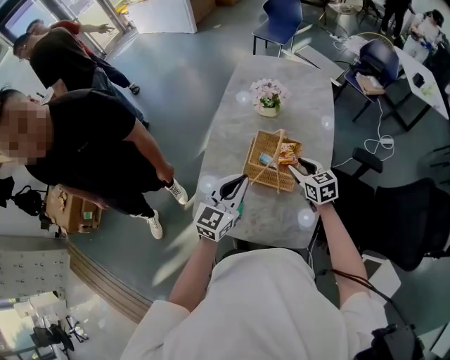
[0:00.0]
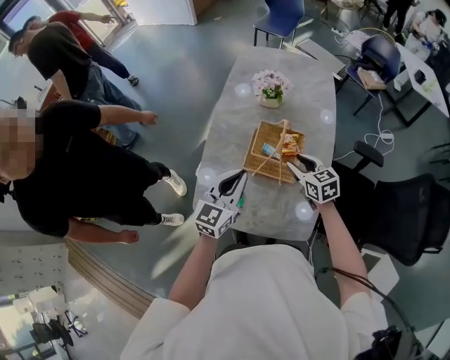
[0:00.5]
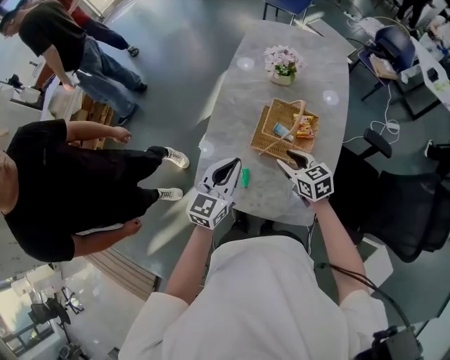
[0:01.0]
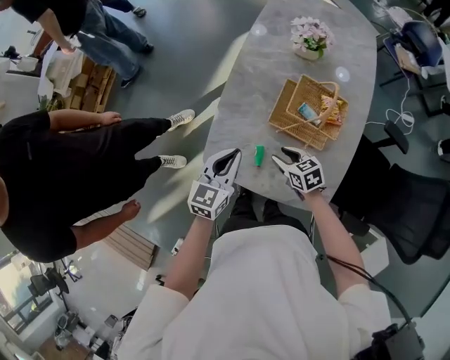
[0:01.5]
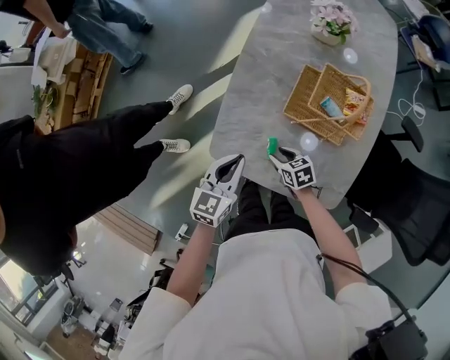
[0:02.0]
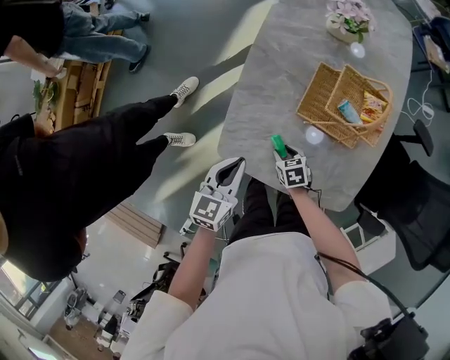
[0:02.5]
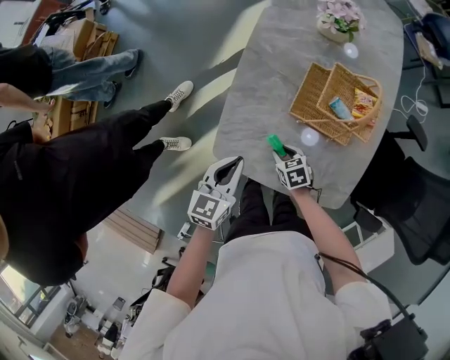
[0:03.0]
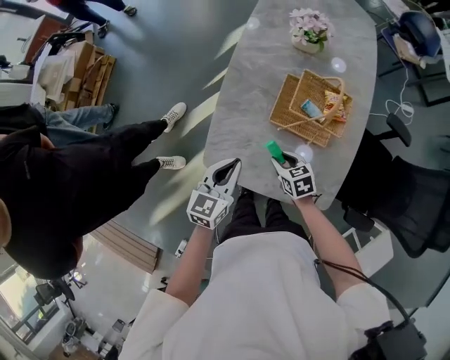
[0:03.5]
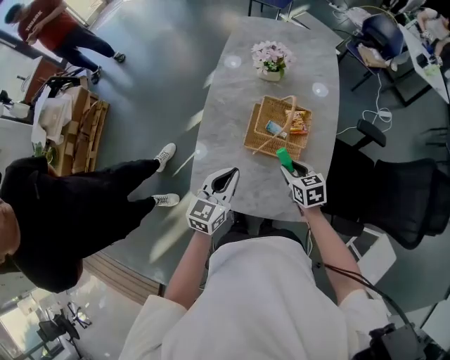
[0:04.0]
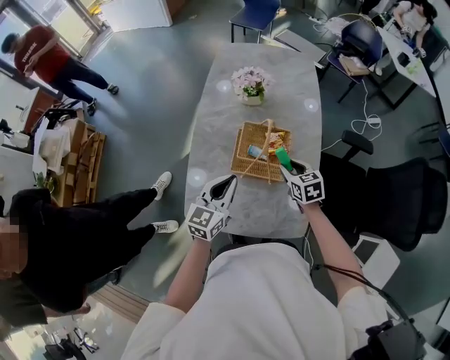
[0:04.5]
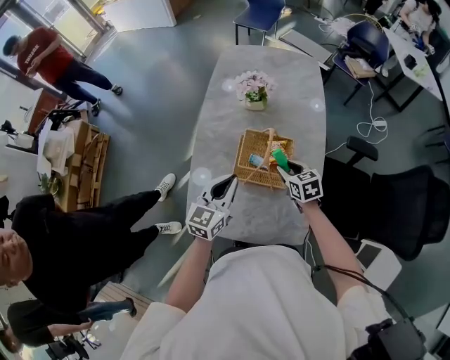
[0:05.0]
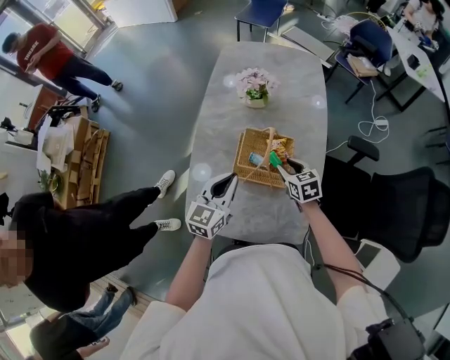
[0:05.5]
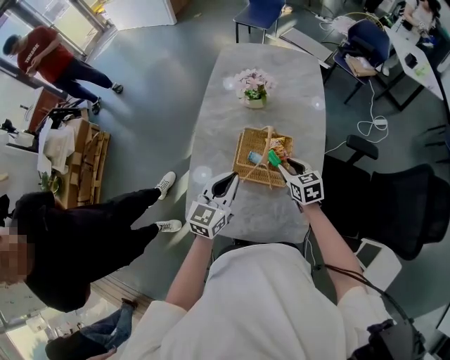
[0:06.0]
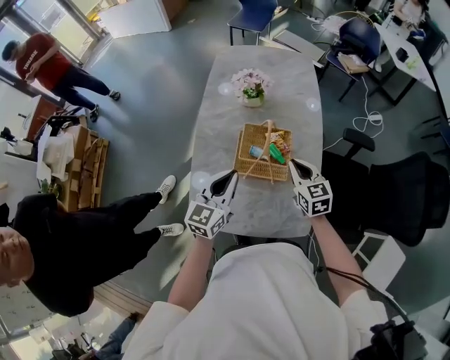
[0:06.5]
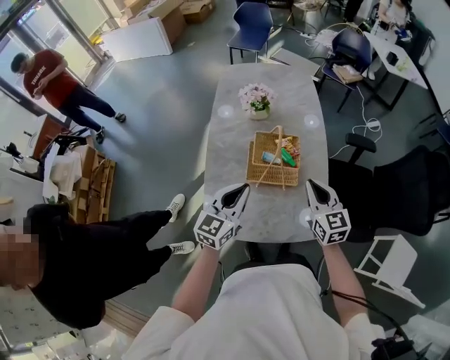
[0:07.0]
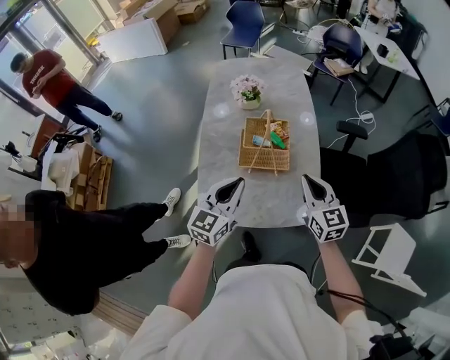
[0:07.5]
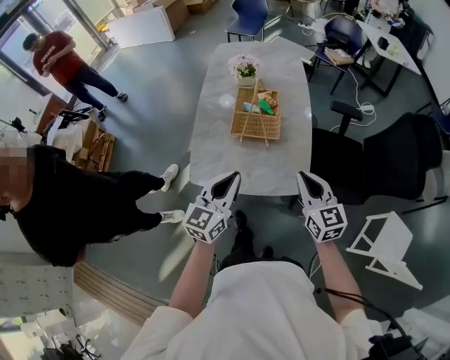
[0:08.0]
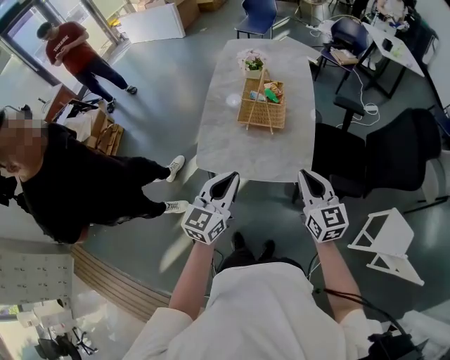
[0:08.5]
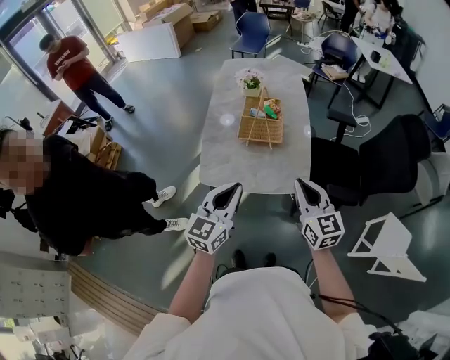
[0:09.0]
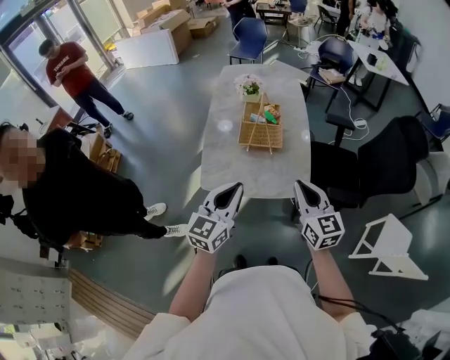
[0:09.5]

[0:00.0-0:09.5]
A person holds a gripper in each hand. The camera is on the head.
0:00.0 to 0:02.0: The right gripper is displaced downward, to the left and backward by roughly 35 cm, and changes its angle by approximately 30 degrees, while the left gripper heads downward and to the left, covering roughly 25 cm, and swivels about 20 degrees.
0:02.0 to 0:04.0: The left gripper shifts about 15 cm upward and to the right, while the right gripper is displaced upward and to the right by roughly 25 cm, and changes its angle by about 20 degrees.
0:04.0 to 0:05.5: Both grippers move forward and to the right, approximately 10 cm.
0:05.5 to 0:07.5: The right gripper goes about 30 cm backward and upward, swivels about 30 degrees, and closes up; the left gripper is displaced backward and upward by some 15 cm.
0:07.5 to 0:09.5: The two grippers go roughly 25 cm backward.

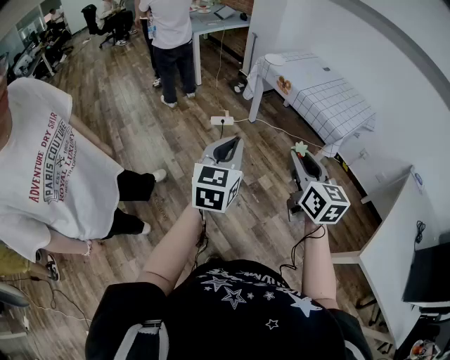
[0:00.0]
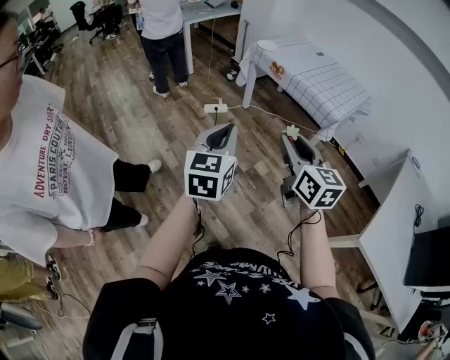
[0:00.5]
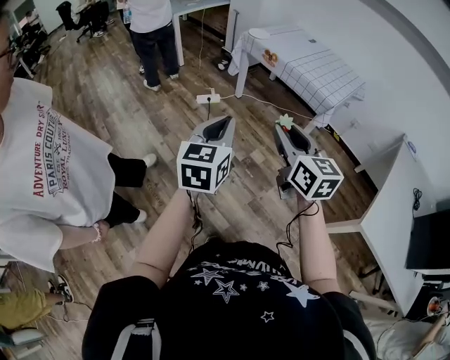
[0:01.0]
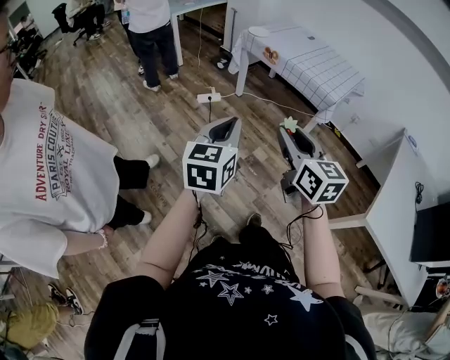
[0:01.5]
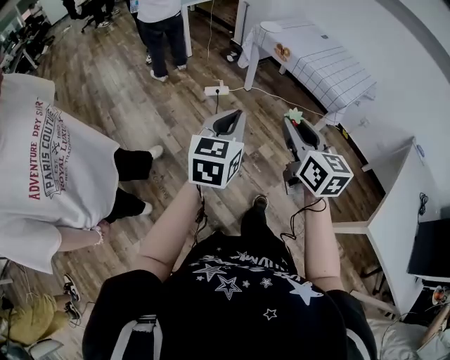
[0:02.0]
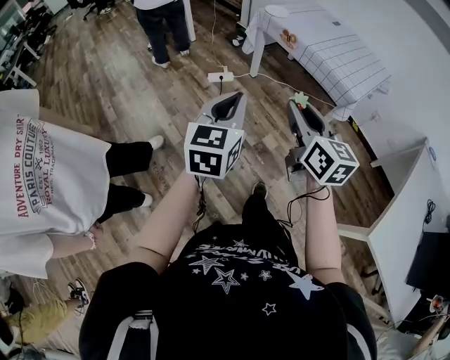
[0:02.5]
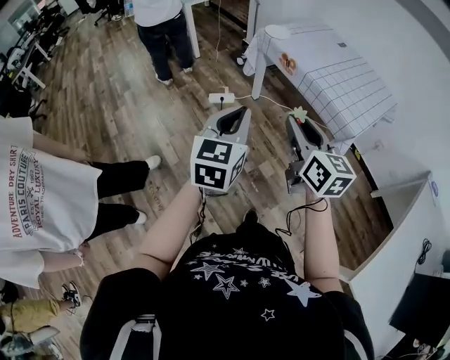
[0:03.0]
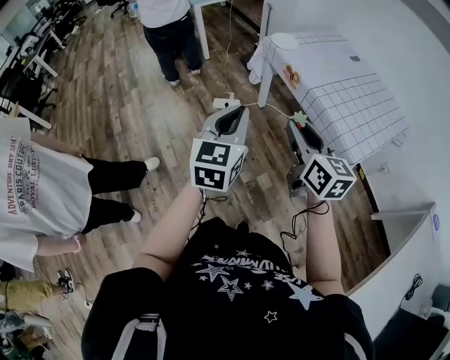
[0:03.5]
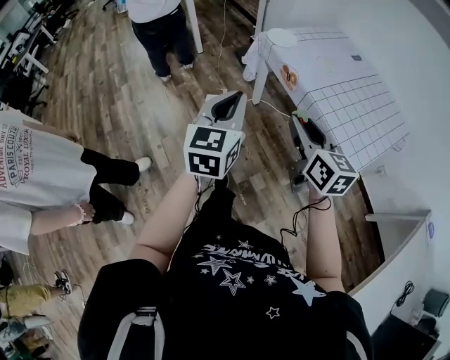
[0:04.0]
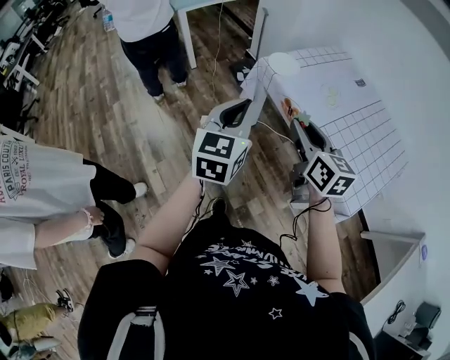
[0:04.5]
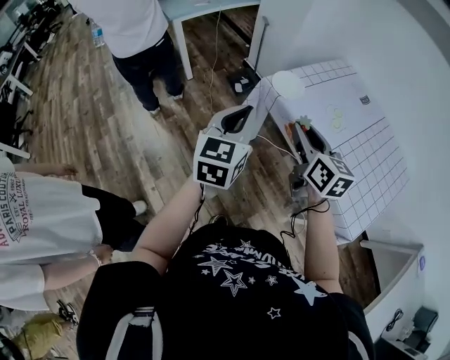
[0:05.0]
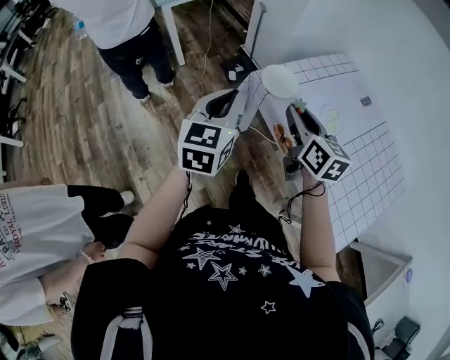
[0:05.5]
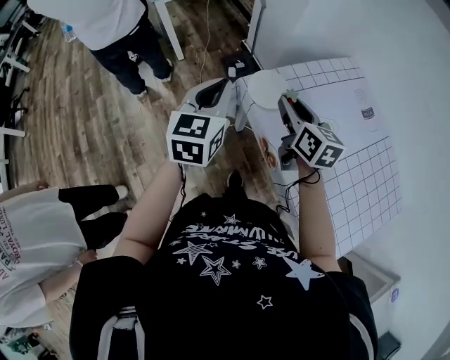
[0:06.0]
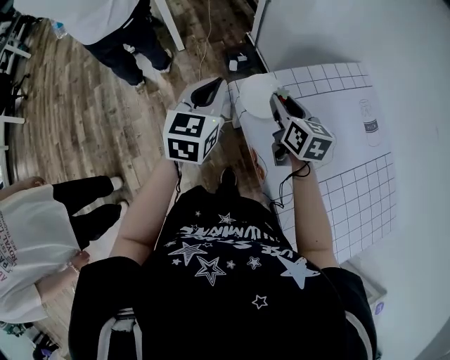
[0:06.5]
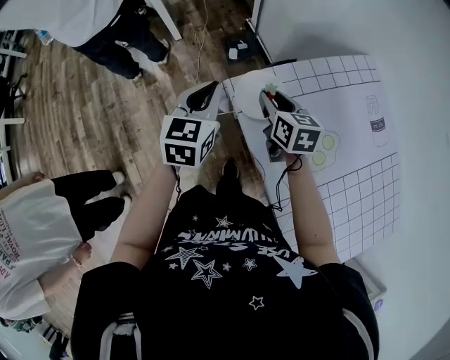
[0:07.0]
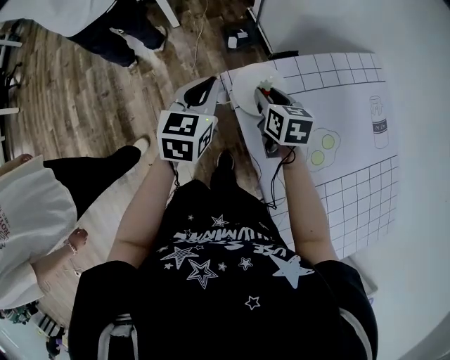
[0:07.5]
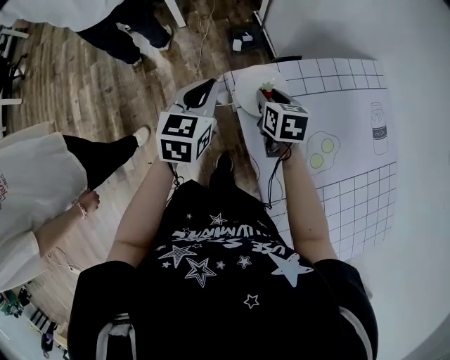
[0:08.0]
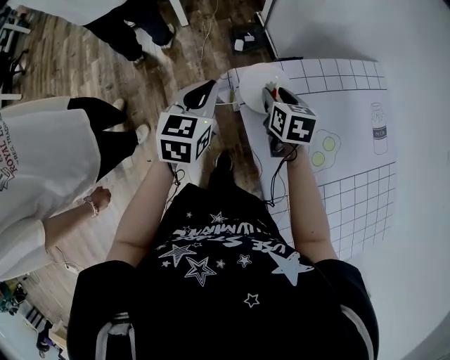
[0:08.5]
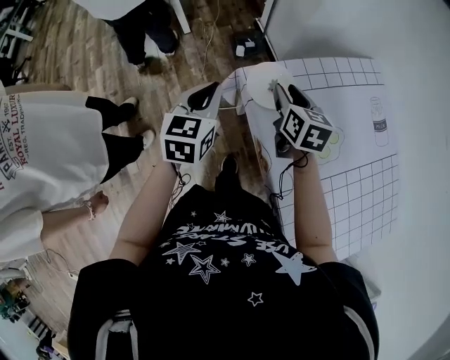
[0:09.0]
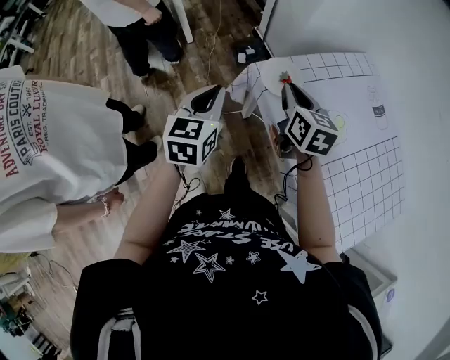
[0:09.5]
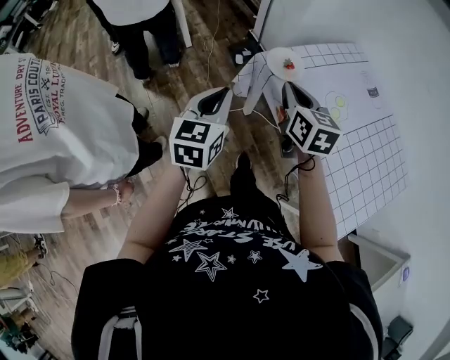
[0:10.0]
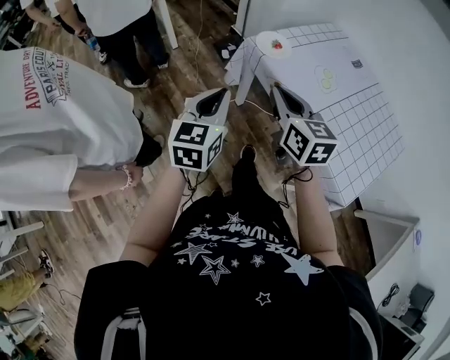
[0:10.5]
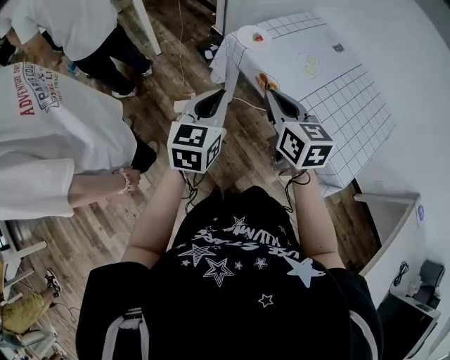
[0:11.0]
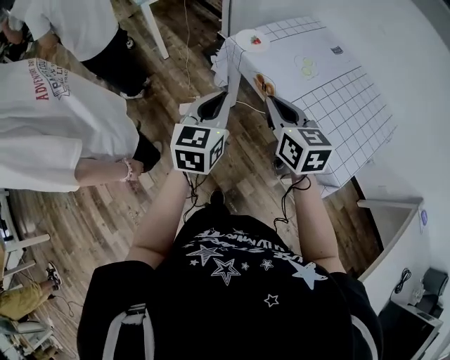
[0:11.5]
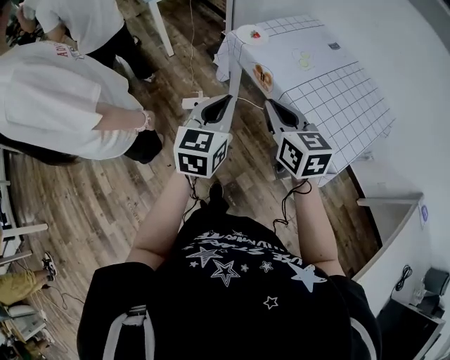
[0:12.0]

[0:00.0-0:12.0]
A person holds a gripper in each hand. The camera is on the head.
0:00.0 to 0:02.0: The right gripper goes about 5 cm to the left.
0:02.0 to 0:04.0: Both grippers are carried forward and to the right, some 40 cm.
0:04.0 to 0:06.0: Both grippers are carried forward, some 40 cm.
0:06.0 to 0:08.0: Both grippers move downward and forward, approximately 15 cm. The right gripper changes its angle by about 30 degrees.
0:08.0 to 0:10.0: The right gripper shifts roughly 25 cm backward and upward, turns by some 30 degrees, and closes its fingers, while the left gripper goes about 25 cm backward and to the left.
0:10.0 to 0:12.0: Both grippers travel together backward, some 25 cm.

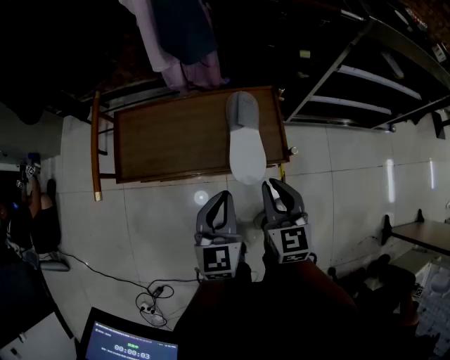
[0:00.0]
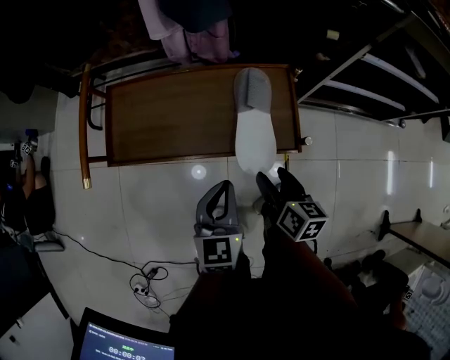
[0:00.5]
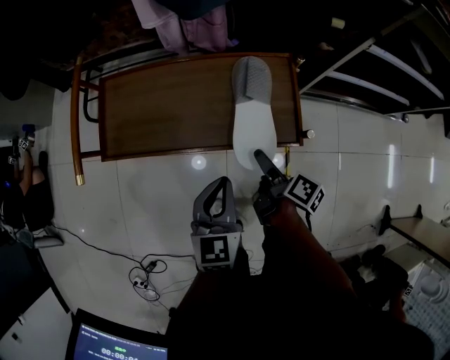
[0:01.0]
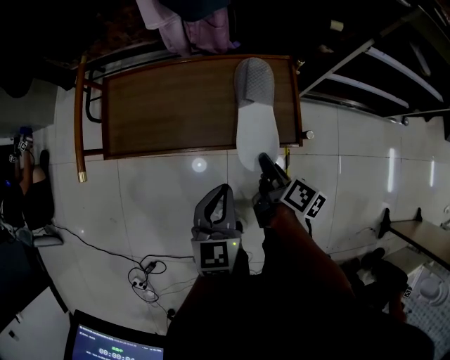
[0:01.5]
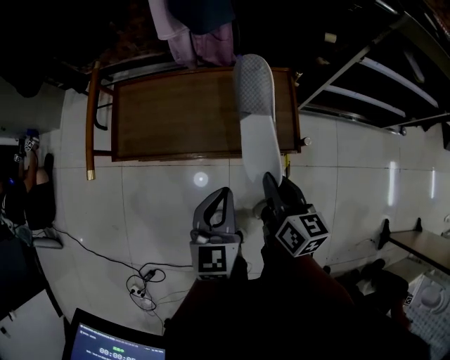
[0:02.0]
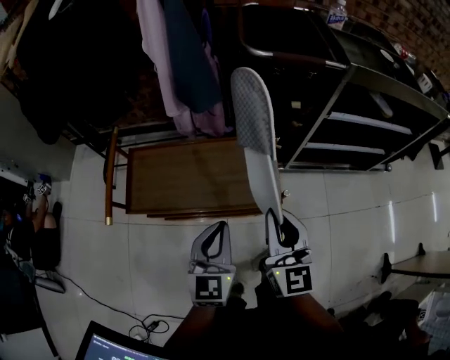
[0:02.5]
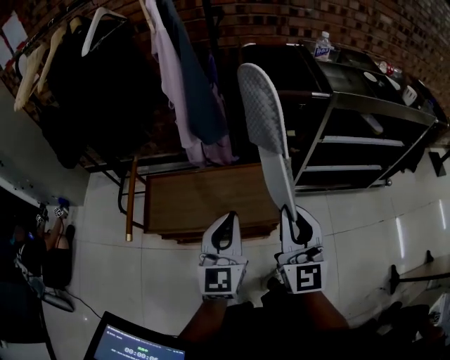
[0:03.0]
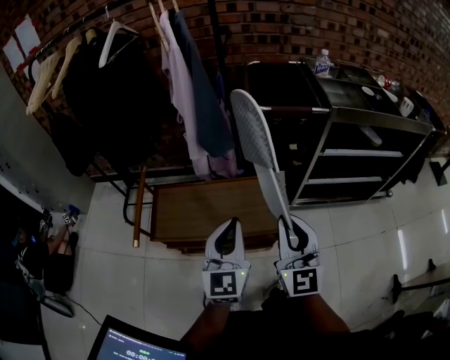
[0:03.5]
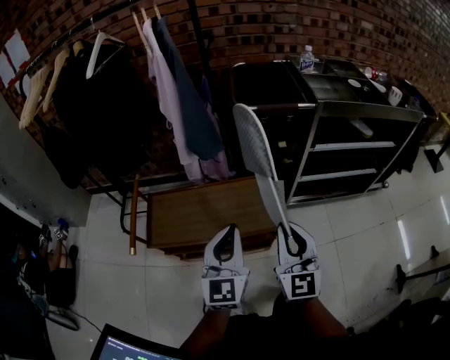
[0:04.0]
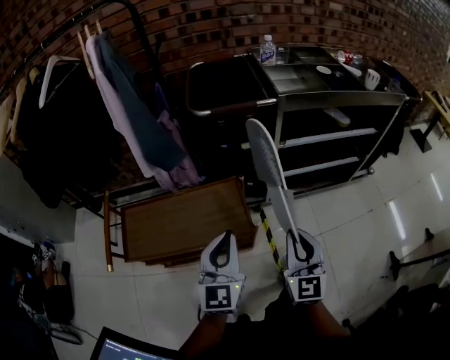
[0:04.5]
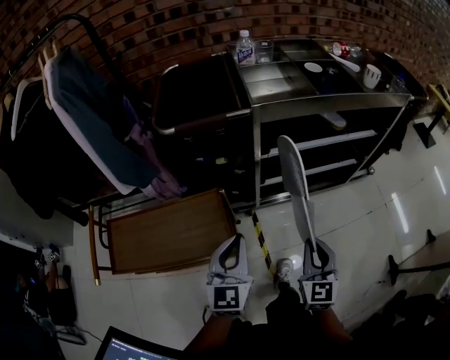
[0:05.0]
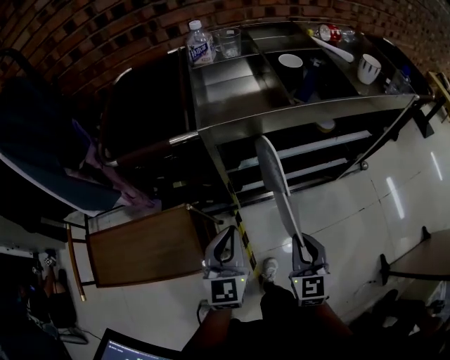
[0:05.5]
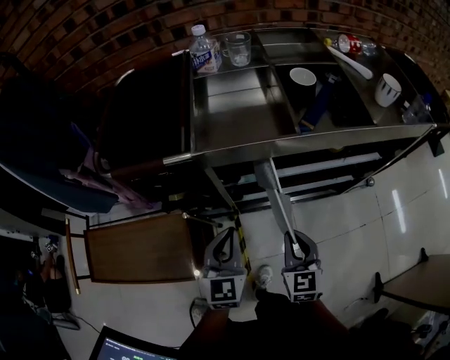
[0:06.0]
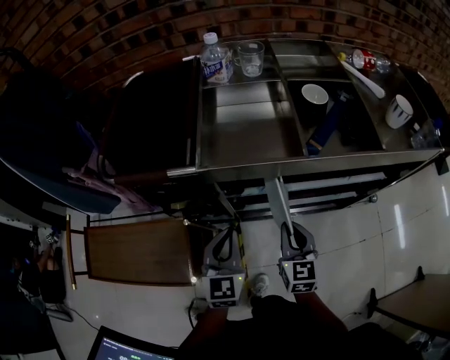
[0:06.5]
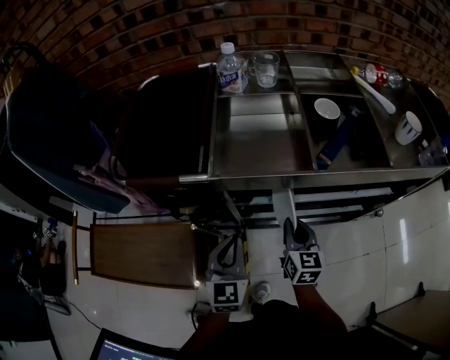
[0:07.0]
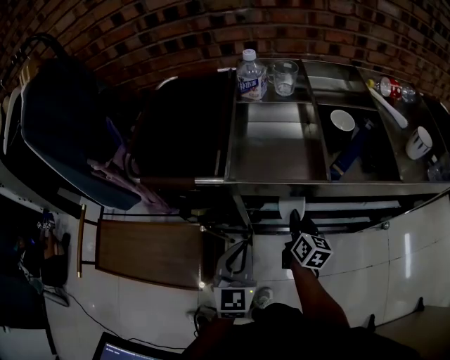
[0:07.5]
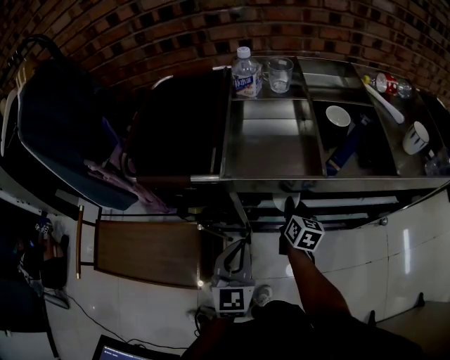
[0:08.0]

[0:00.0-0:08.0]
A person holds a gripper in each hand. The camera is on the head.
0:00.0 to 0:02.0: The right gripper moves about 15 cm downward and comes back, swivels about 30 degrees, and opens and closes again.
0:02.0 to 0:04.0: The grippers both shift upward by approximately 25 cm. The left gripper rotates approximately 20 degrees. The right gripper changes its angle by some 50 degrees.
0:04.0 to 0:06.0: The two grippers travel together, to the right and forward, some 50 cm. The right gripper heads downward, covering some 20 cm, and turns by roughly 30 degrees.
0:06.0 to 0:08.0: The right gripper shifts approximately 20 cm forward, and changes its angle by roughly 30 degrees.
